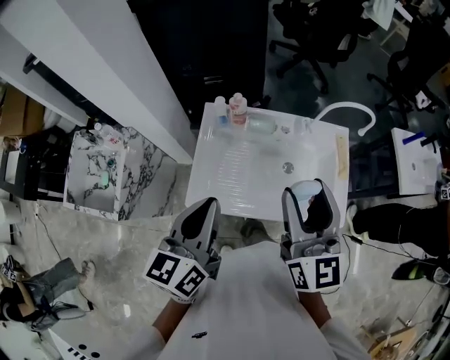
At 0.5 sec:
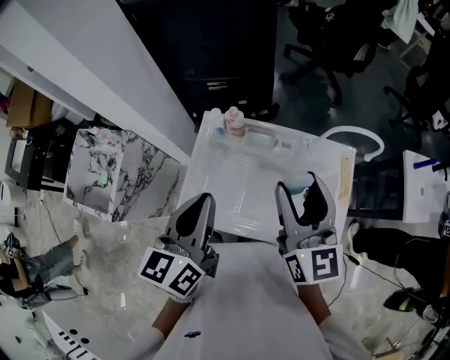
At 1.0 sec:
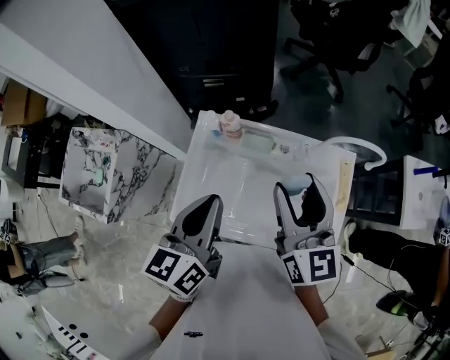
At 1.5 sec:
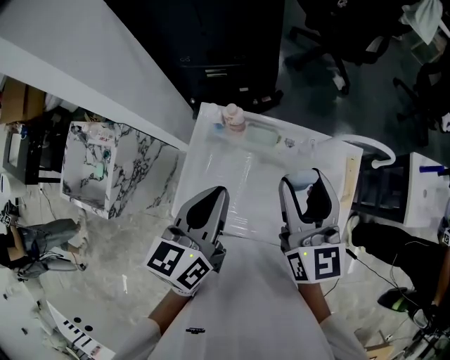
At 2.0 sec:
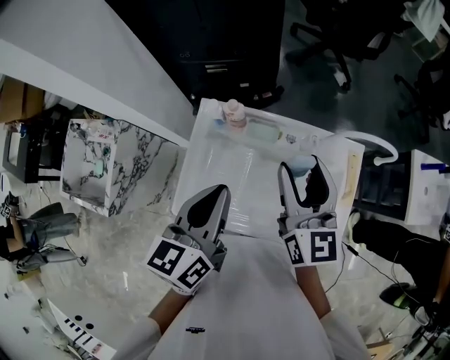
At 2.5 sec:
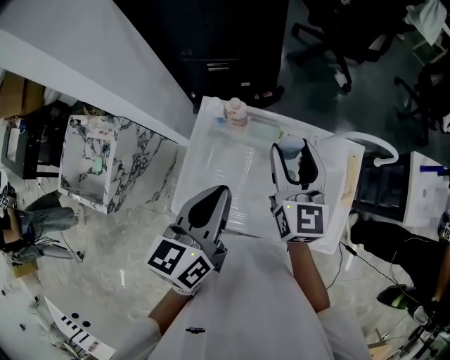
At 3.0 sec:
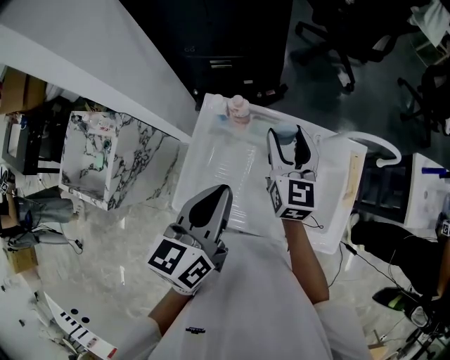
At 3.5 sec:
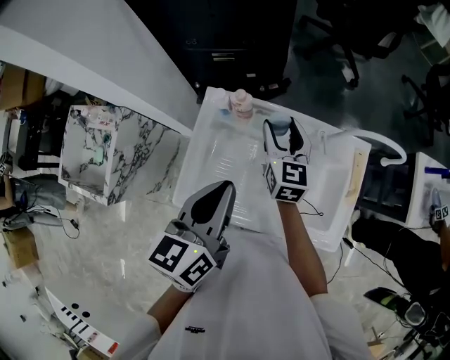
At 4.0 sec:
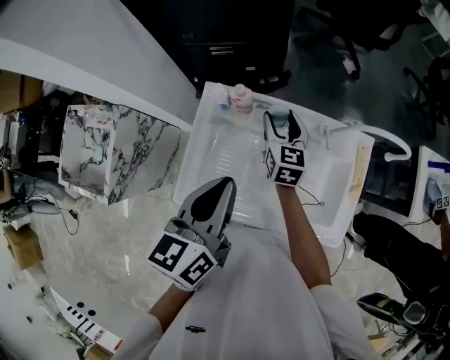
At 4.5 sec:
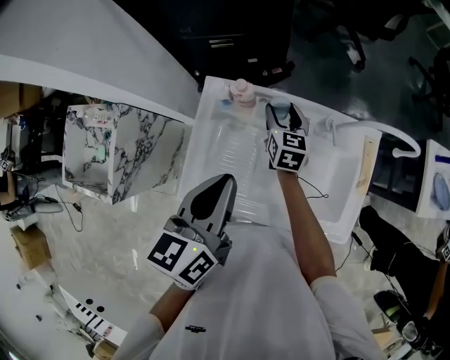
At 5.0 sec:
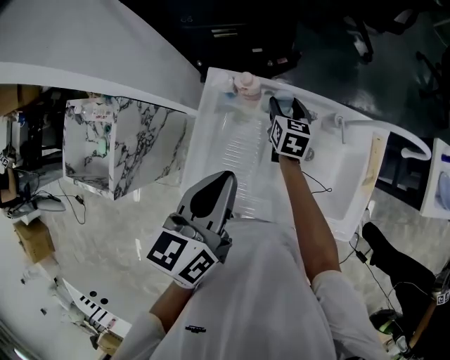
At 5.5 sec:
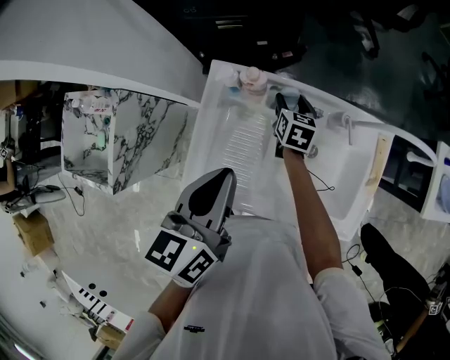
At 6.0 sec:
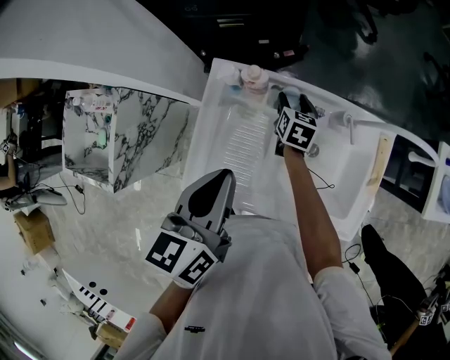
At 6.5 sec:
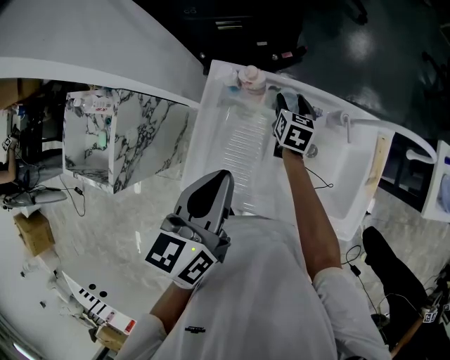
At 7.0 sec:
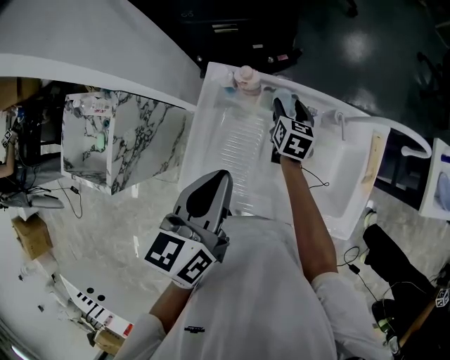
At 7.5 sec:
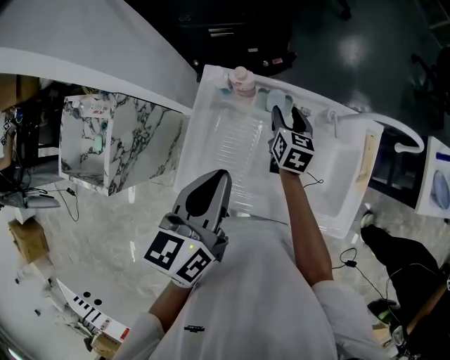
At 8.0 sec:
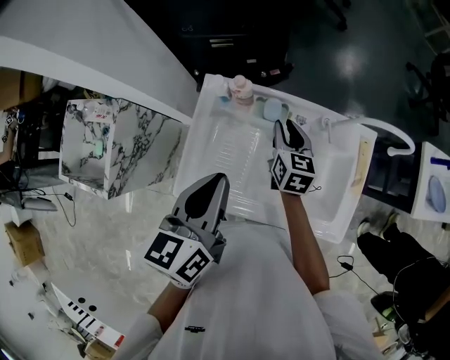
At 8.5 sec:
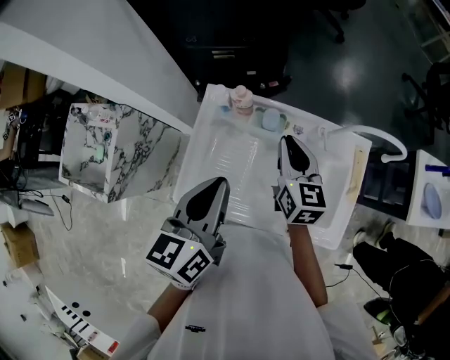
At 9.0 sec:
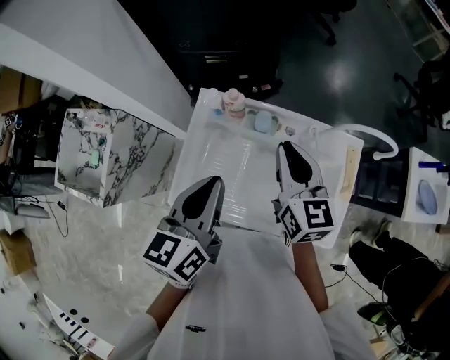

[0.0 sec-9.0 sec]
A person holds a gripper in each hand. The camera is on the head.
0.0 sec to 2.0 sec: The right gripper heads forward and downward, covering some 20 cm, while the left gripper shifts roughly 15 cm forward and to the right.
2.0 sec to 4.5 sec: The right gripper travels downward and forward by about 30 cm, and changes its angle by some 20 degrees.
4.5 sec to 7.0 sec: The right gripper is displaced downward by some 5 cm.
7.0 sec to 9.0 sec: The right gripper heads upward and backward, covering roughly 30 cm, turns by roughly 30 degrees, and closes up.

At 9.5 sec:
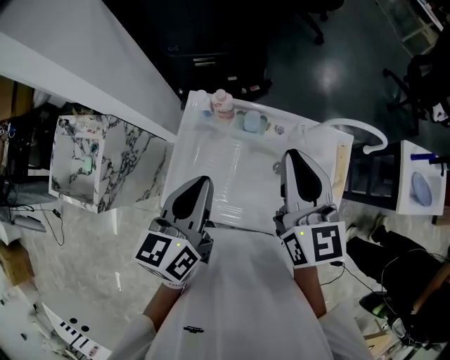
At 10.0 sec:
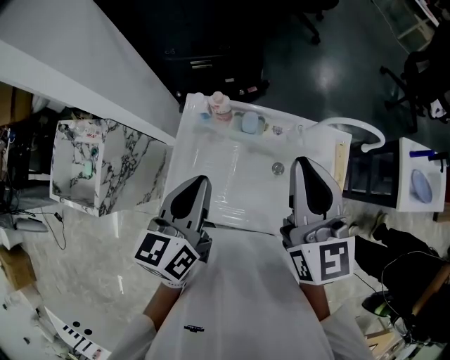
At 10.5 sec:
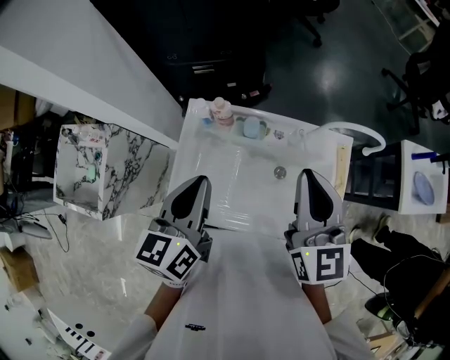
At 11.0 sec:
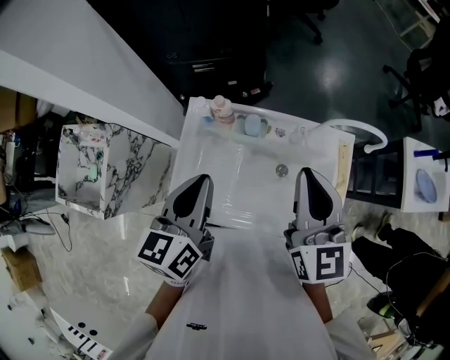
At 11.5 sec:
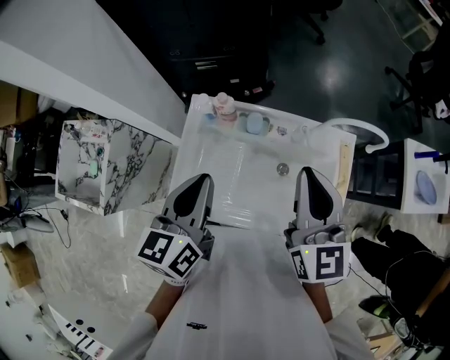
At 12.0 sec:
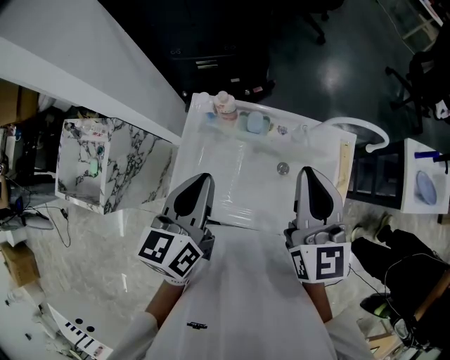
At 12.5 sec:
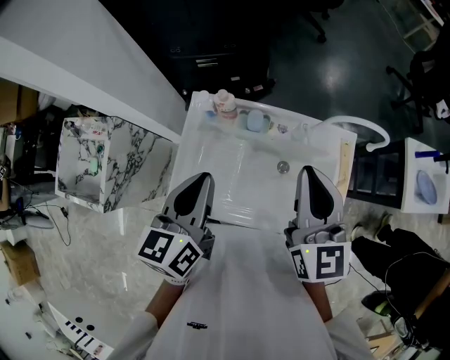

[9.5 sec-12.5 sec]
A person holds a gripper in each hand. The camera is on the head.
9.5 sec to 11.0 sec: The grippers move only a little.
11.0 sec to 12.5 sec: The two grippers keep their place.

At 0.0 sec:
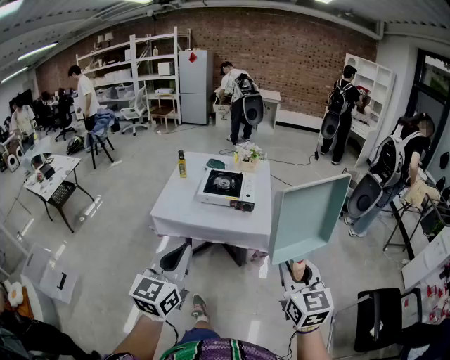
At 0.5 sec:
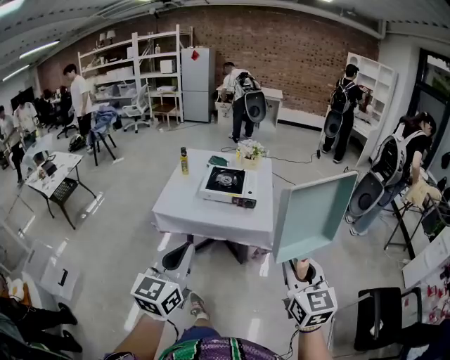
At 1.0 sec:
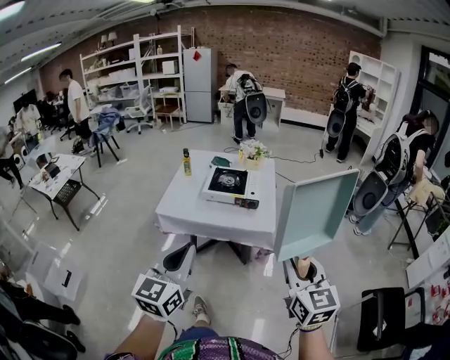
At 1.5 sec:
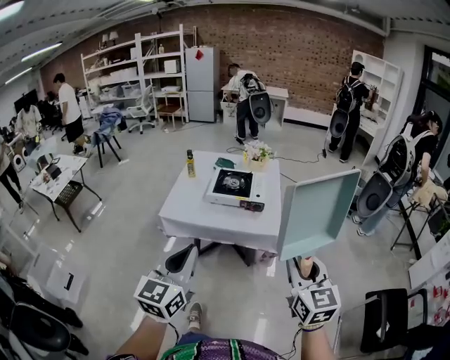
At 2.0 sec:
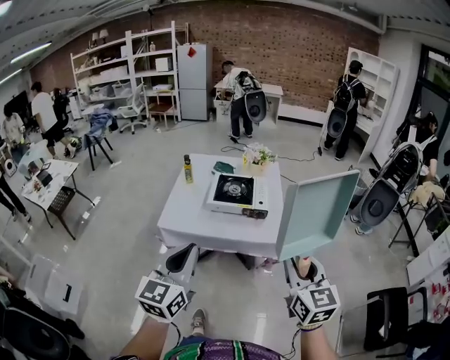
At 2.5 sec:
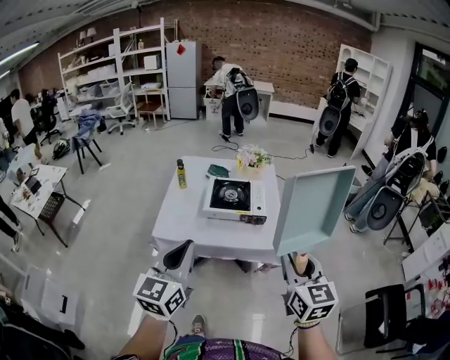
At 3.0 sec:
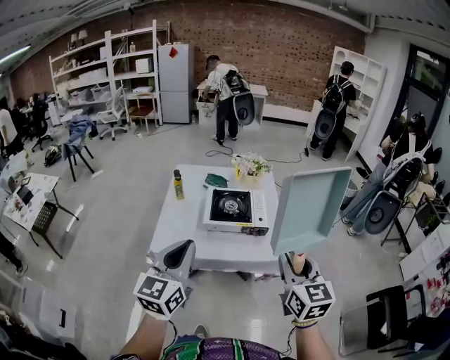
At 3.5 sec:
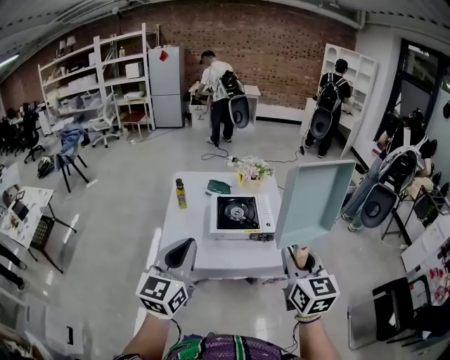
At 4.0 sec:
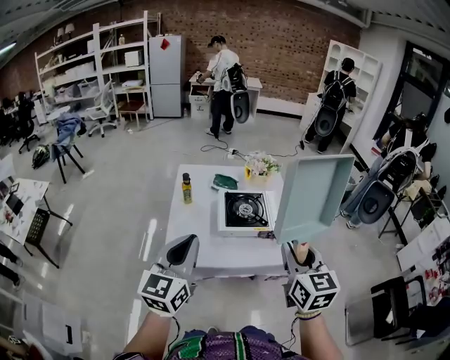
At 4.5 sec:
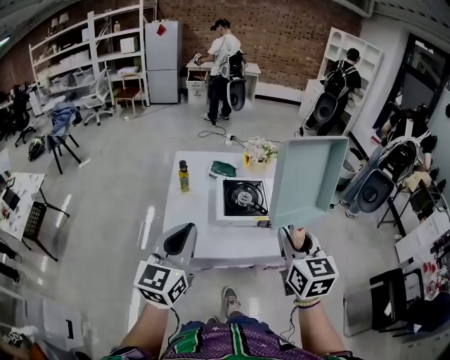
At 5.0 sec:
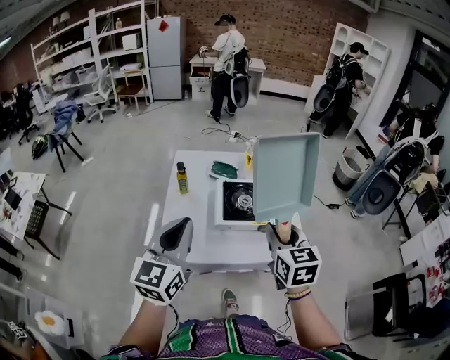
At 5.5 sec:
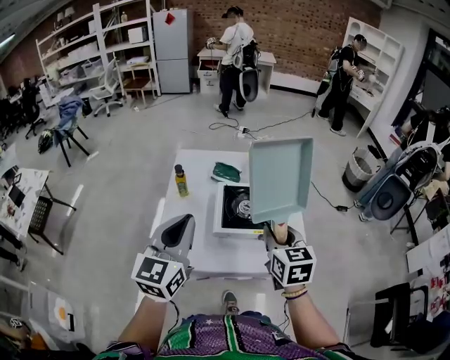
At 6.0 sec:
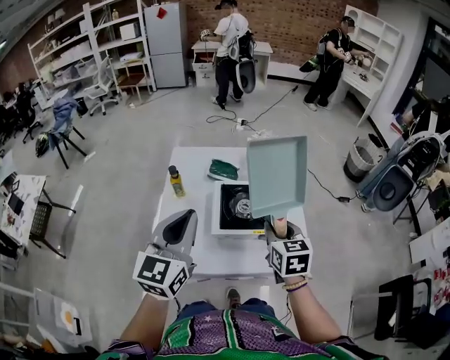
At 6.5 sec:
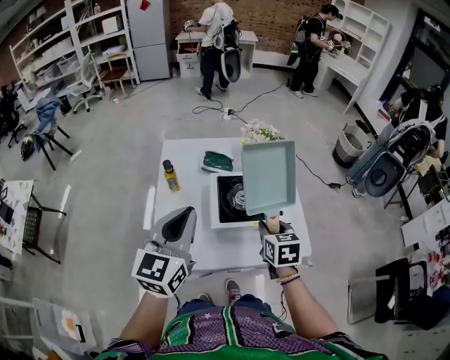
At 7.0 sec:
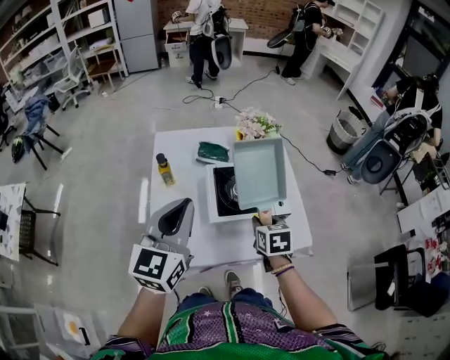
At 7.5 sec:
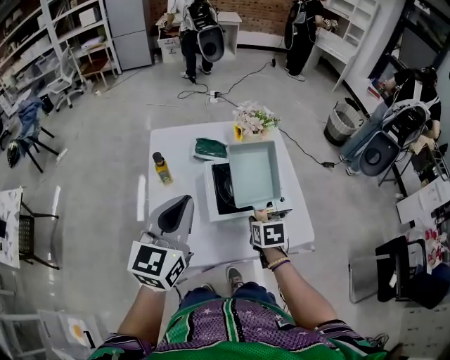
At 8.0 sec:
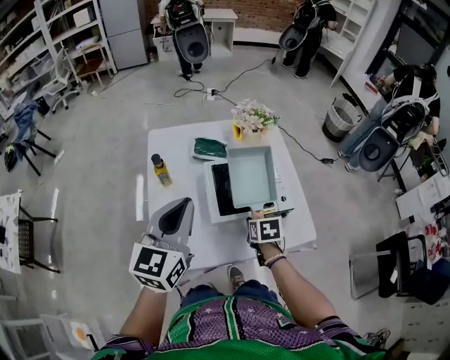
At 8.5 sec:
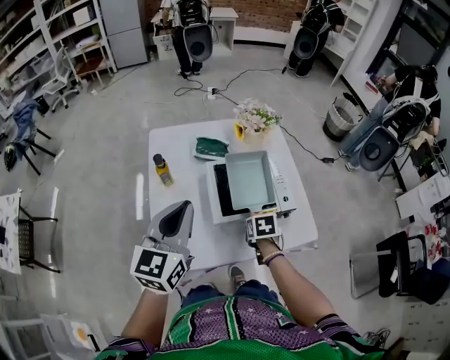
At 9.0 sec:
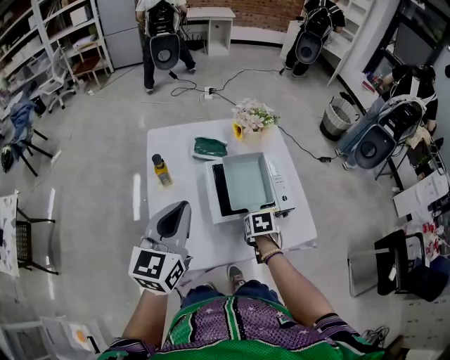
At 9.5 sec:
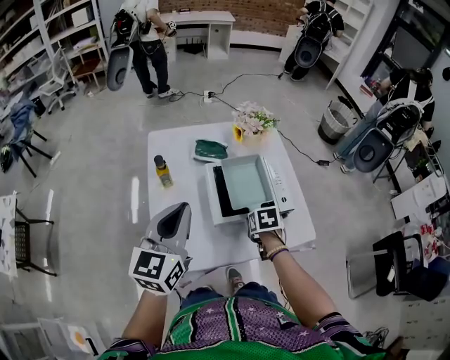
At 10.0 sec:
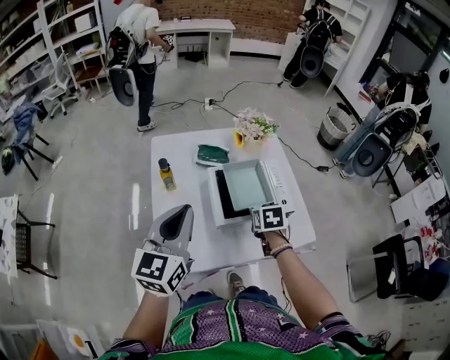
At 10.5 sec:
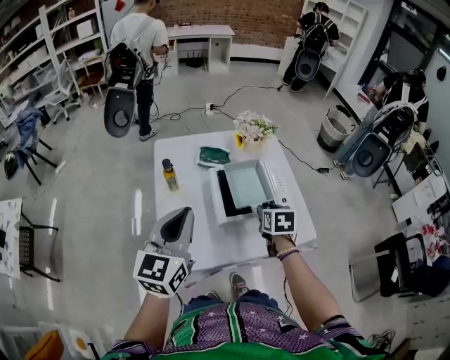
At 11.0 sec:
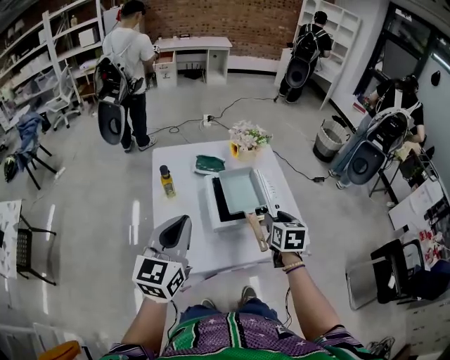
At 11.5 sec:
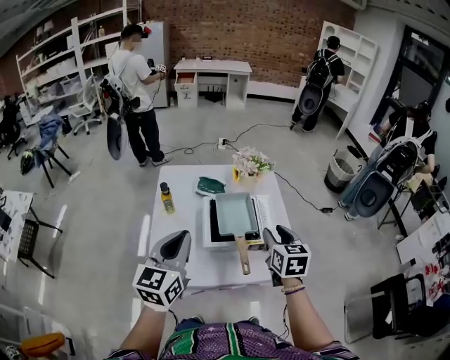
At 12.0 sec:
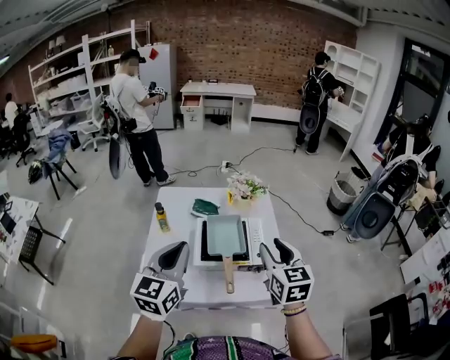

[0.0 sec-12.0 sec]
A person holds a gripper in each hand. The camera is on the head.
0.0 sec to 2.0 sec: Both grippers move forward and to the left, roughly 10 cm.
2.0 sec to 4.0 sec: The left gripper shifts about 30 cm forward and to the left, while the right gripper shifts some 25 cm to the left and forward.
4.0 sec to 6.0 sec: The right gripper moves forward and downward, some 25 cm. The left gripper shifts roughly 15 cm forward.
6.0 sec to 8.0 sec: The left gripper moves forward and downward, about 10 cm; the right gripper heads downward, covering roughly 20 cm, and turns by some 30 degrees.
8.0 sec to 10.0 sec: The right gripper moves roughly 5 cm.
10.0 sec to 12.0 sec: The right gripper travels upward and to the right by some 25 cm, and points its fingers about 40 degrees further upward. Meanwhile the left gripper goes about 15 cm to the right and upward.

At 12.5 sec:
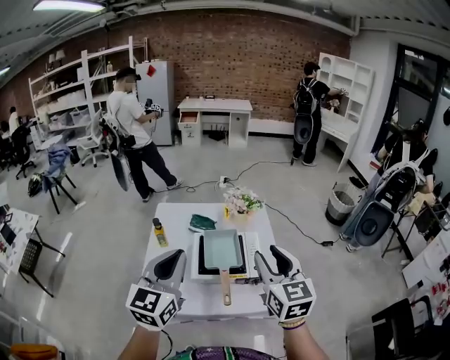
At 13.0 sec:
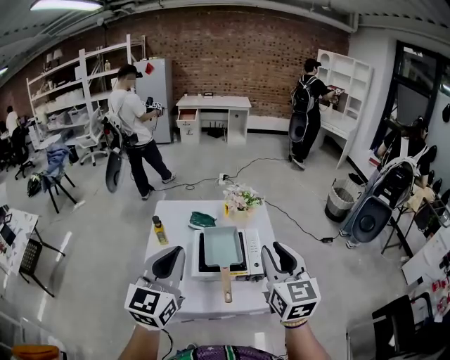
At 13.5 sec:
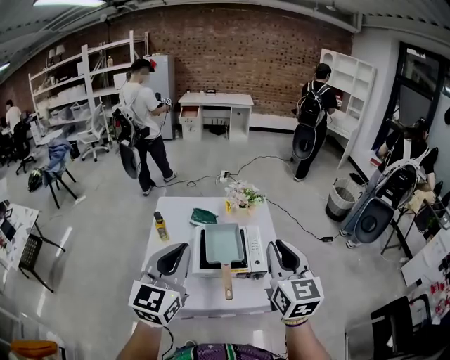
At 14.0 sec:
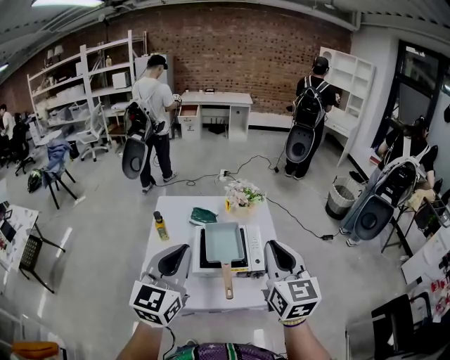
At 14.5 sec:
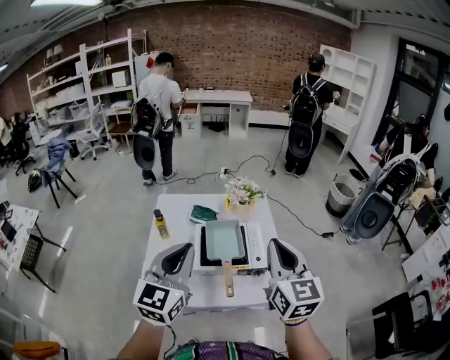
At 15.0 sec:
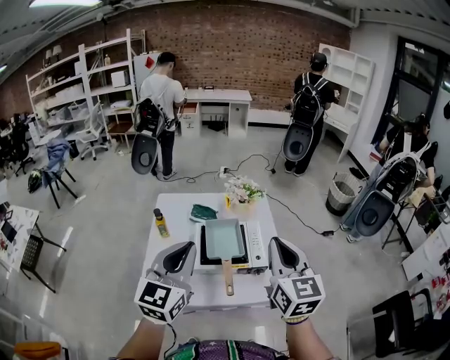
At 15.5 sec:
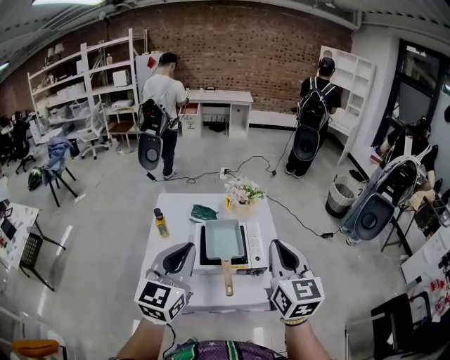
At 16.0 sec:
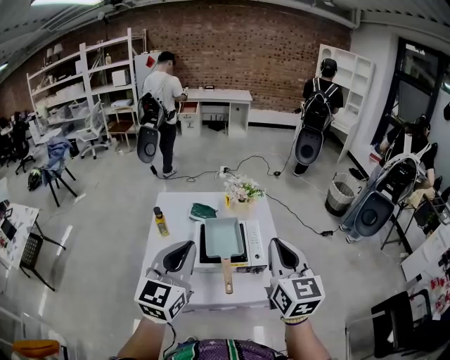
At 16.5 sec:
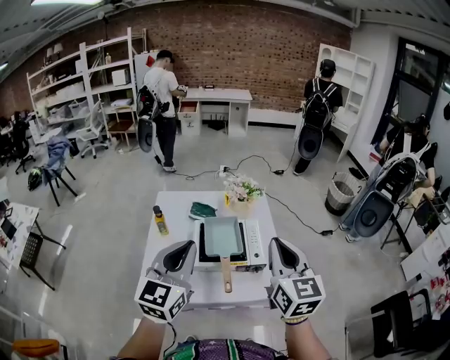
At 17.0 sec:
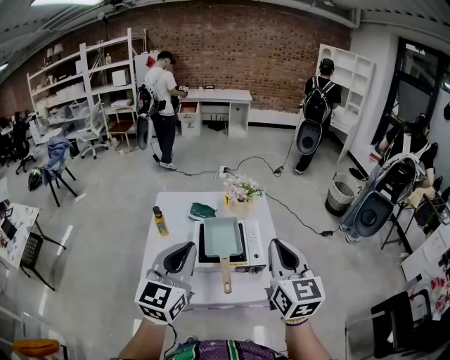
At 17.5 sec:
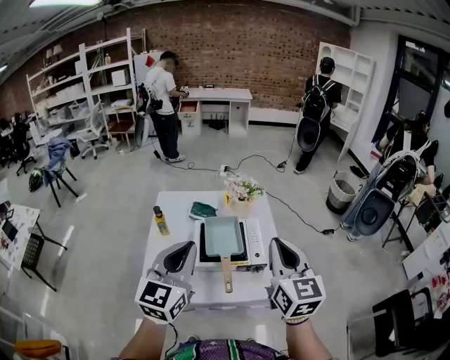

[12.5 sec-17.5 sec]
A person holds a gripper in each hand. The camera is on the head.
12.5 sec to 15.0 sec: The right gripper closes.
15.0 sec to 17.5 sec: Both grippers stay about where they are.
